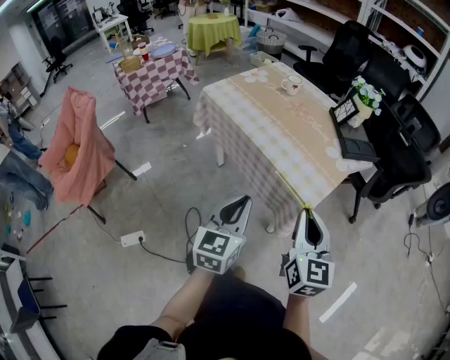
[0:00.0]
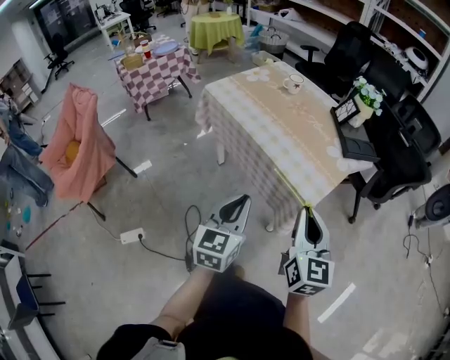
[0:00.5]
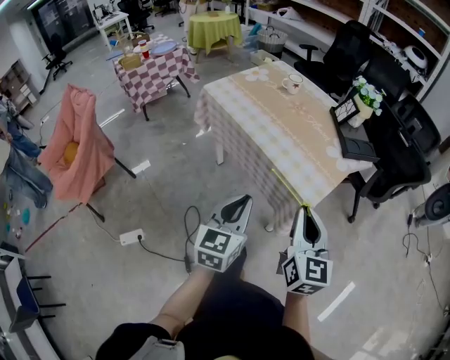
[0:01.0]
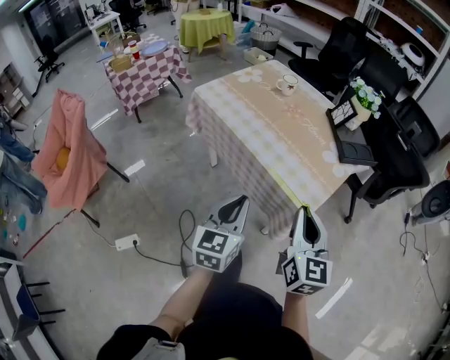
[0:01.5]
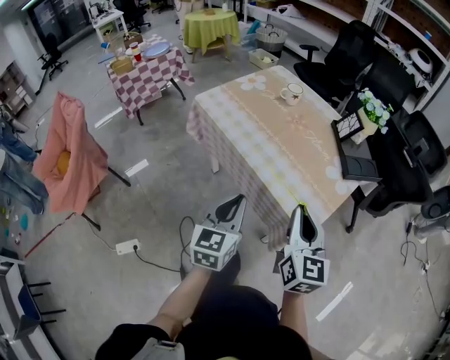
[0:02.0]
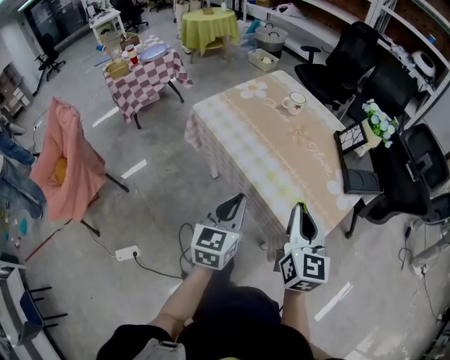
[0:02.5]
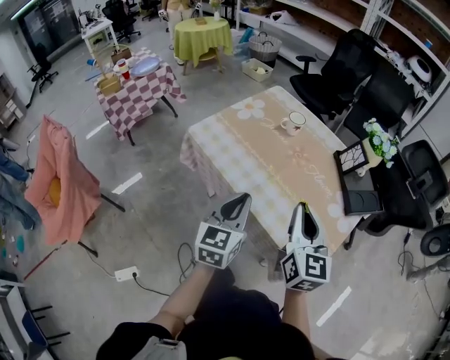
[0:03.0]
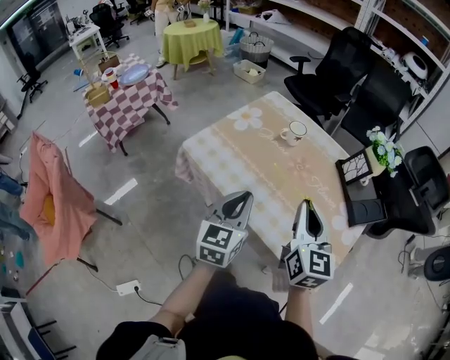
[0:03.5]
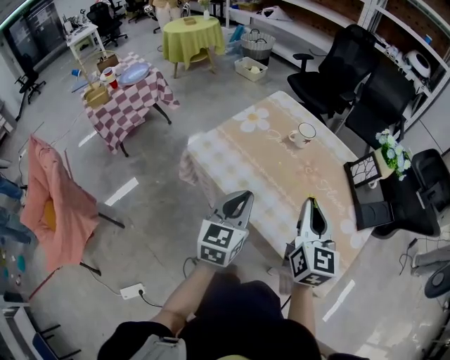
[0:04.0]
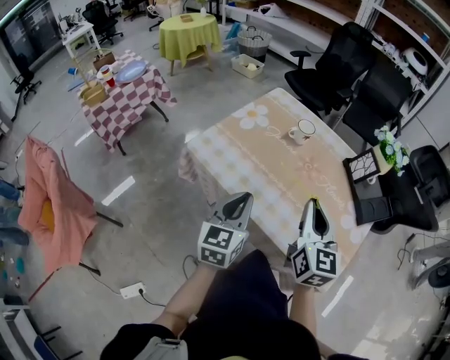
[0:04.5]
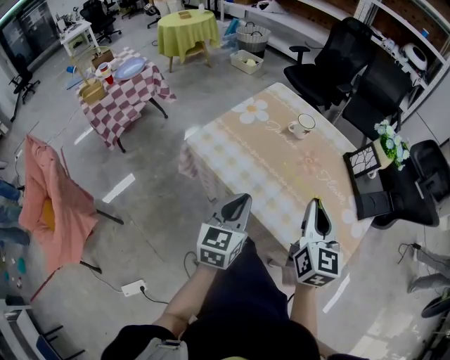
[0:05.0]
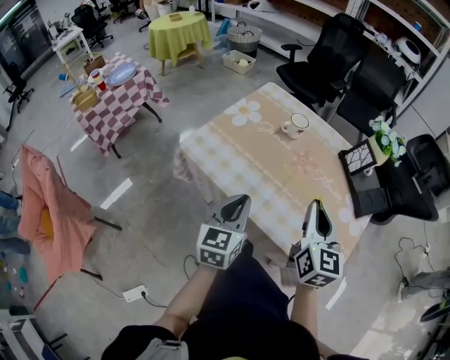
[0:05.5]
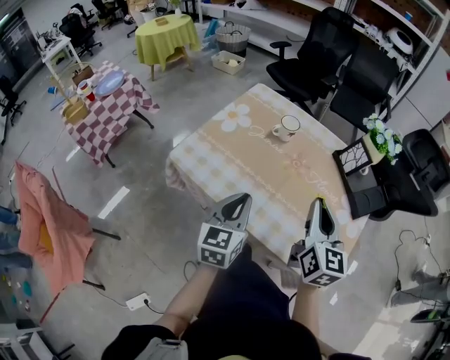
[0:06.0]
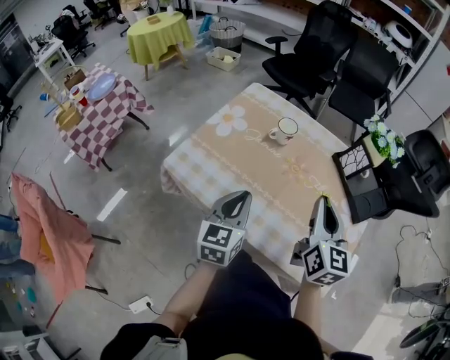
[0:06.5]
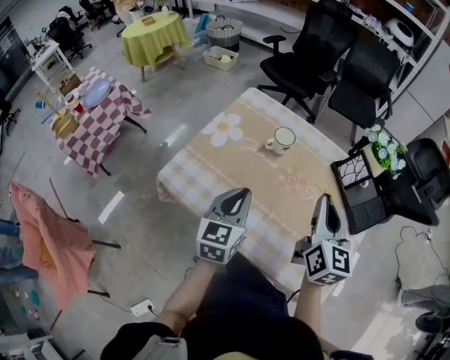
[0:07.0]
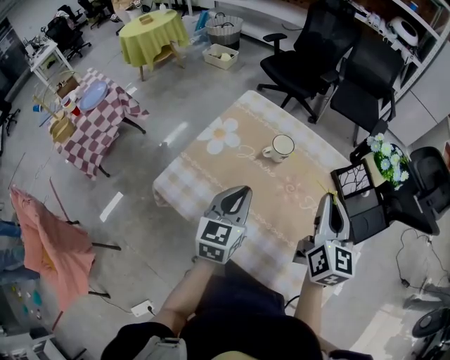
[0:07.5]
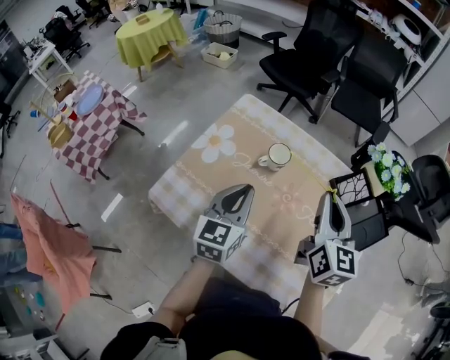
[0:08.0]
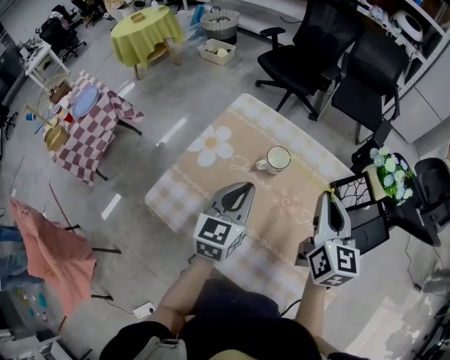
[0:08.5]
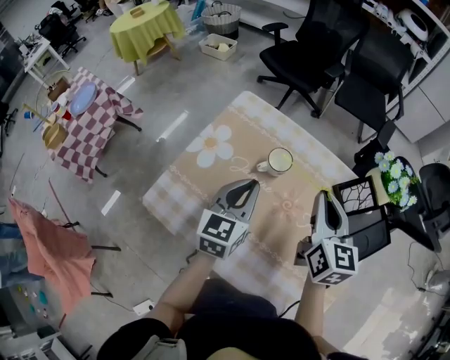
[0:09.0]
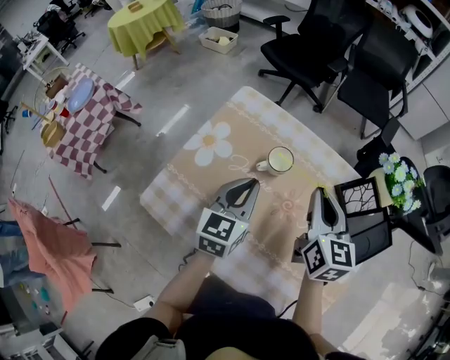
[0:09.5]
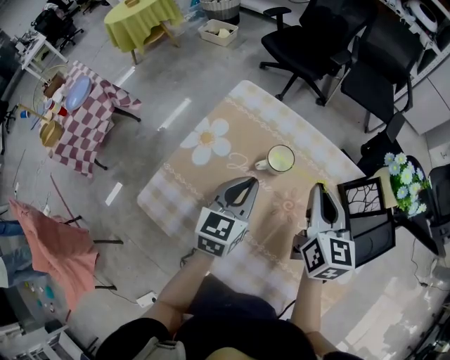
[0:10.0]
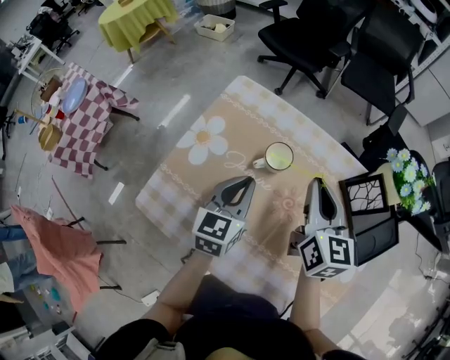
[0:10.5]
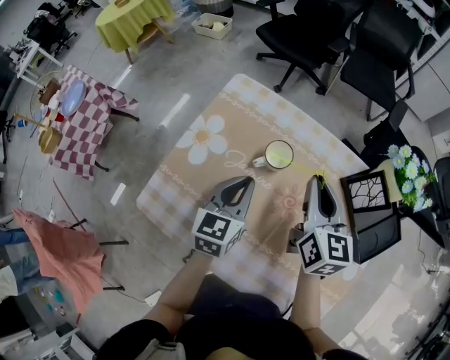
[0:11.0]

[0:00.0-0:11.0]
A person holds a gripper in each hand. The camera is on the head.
0:00.0 to 0:02.0: The grippers both shift forward by approximately 10 cm.
0:02.0 to 0:03.5: Both grippers move forward, approximately 25 cm.
0:03.5 to 0:05.5: The grippers make only small movements.
0:05.5 to 0:07.5: The two grippers go approximately 20 cm forward.
0:07.5 to 0:09.0: Both grippers move forward, roughly 10 cm.
0:09.0 to 0:11.0: The right gripper changes place by roughly 5 cm; the left gripper shifts approximately 5 cm downward.

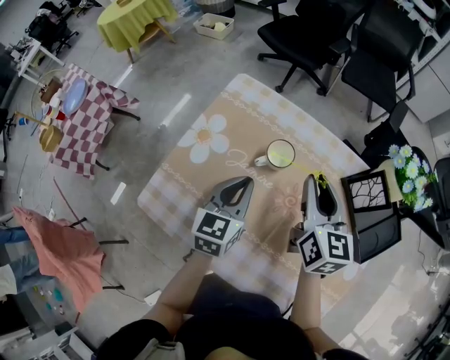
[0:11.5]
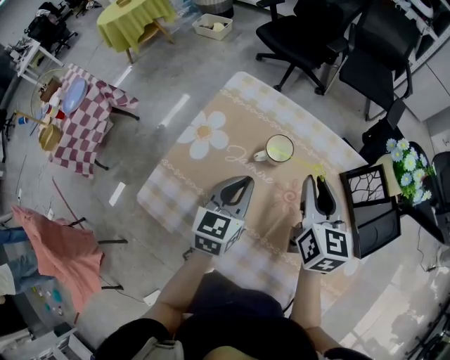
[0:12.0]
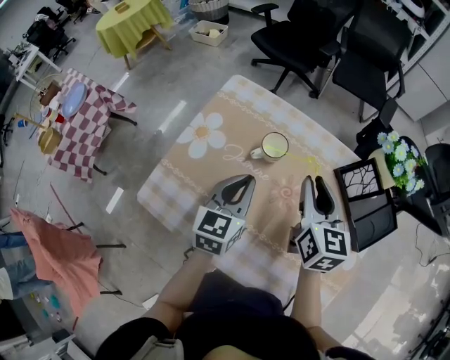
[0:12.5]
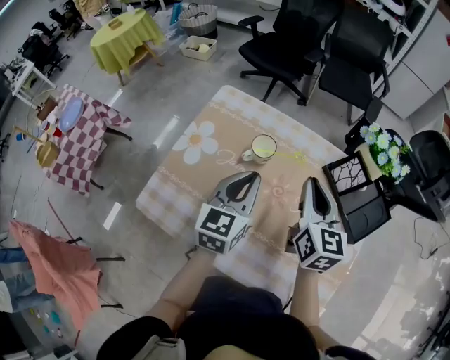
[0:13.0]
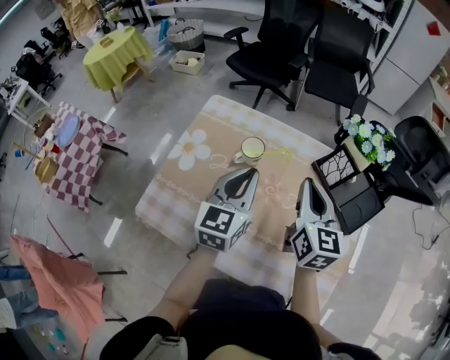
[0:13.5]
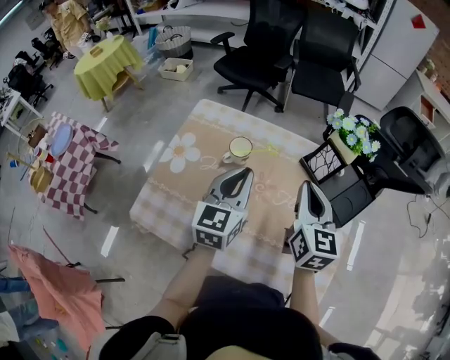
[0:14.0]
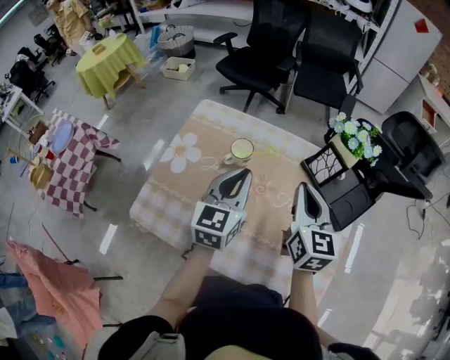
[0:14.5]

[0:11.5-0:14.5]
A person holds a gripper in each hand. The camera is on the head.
0:11.5 to 0:13.0: The right gripper moves backward, approximately 5 cm; the left gripper moves upward, some 5 cm.
0:13.0 to 0:14.5: The right gripper changes place by about 5 cm.

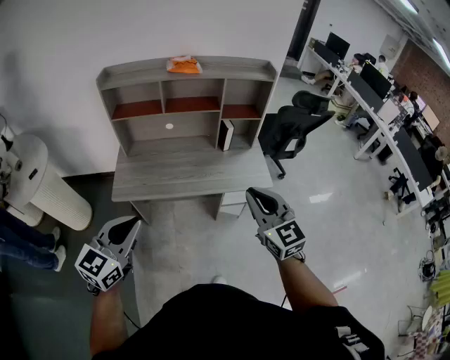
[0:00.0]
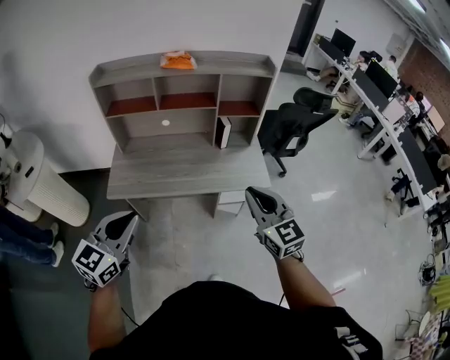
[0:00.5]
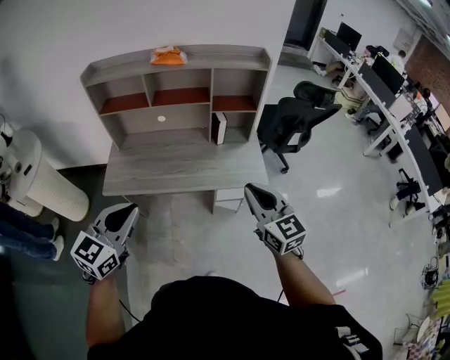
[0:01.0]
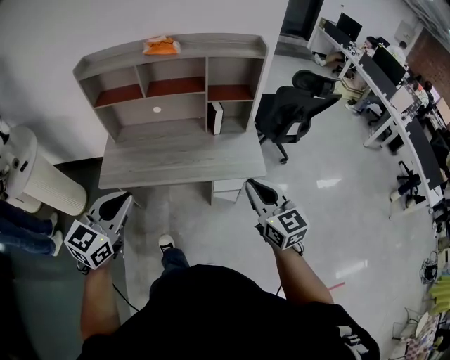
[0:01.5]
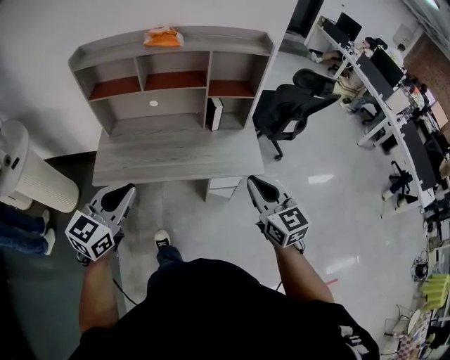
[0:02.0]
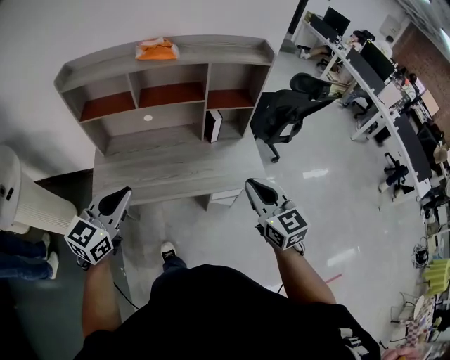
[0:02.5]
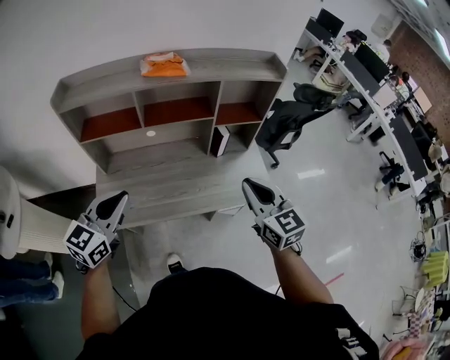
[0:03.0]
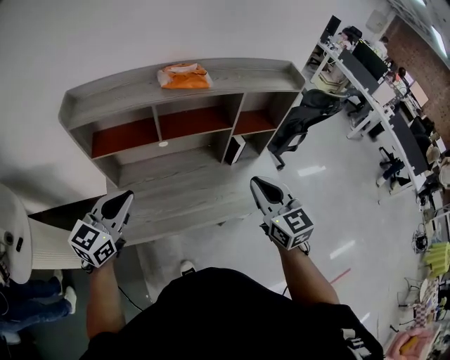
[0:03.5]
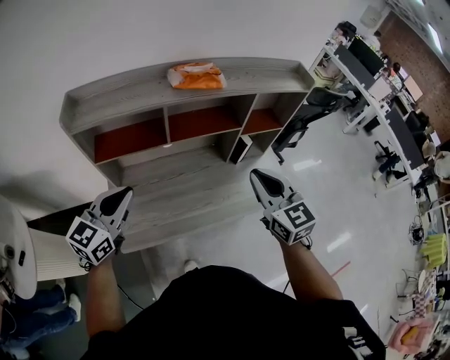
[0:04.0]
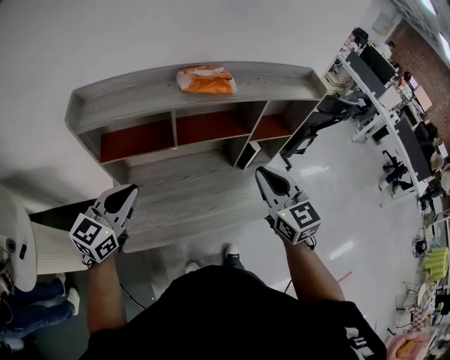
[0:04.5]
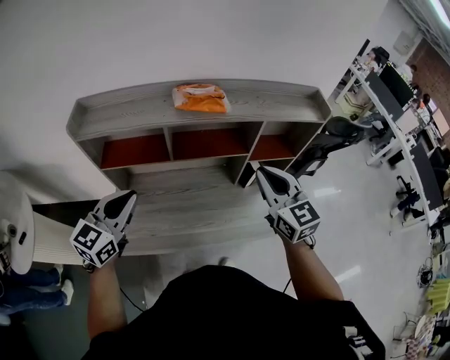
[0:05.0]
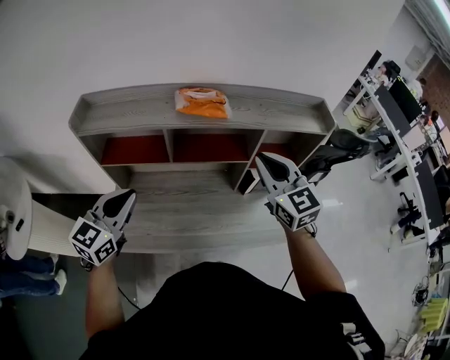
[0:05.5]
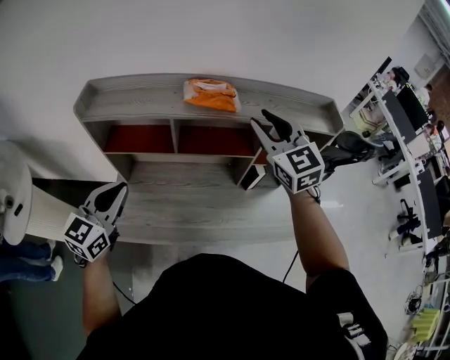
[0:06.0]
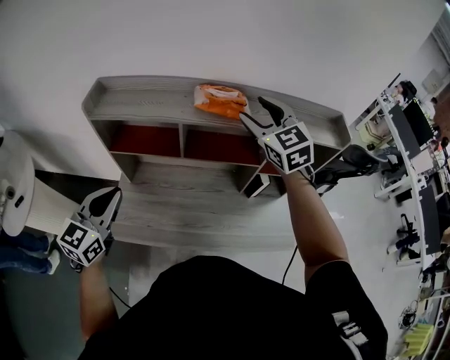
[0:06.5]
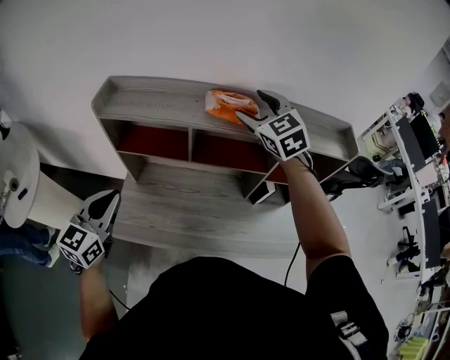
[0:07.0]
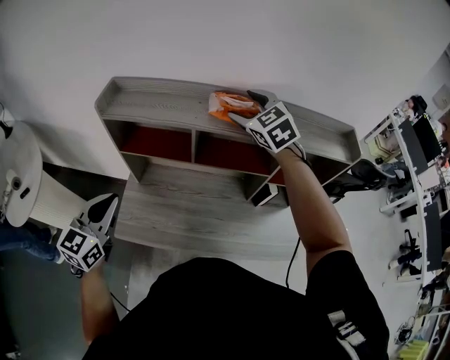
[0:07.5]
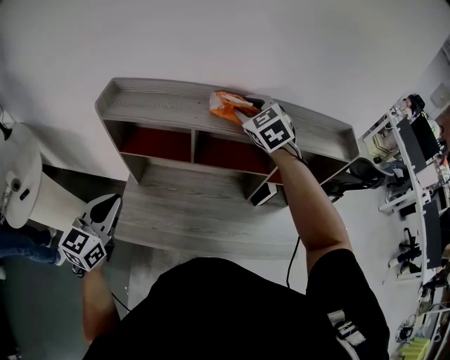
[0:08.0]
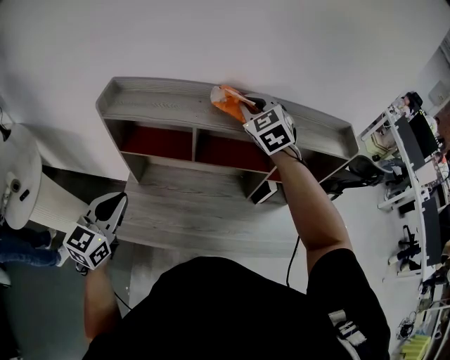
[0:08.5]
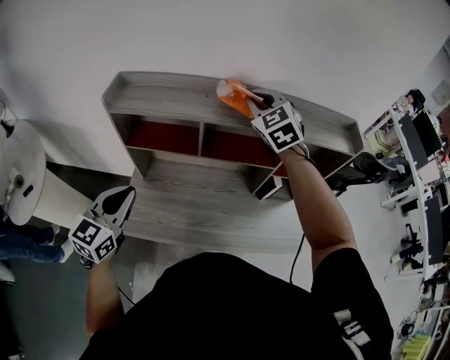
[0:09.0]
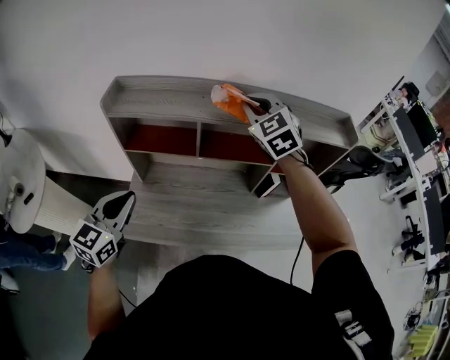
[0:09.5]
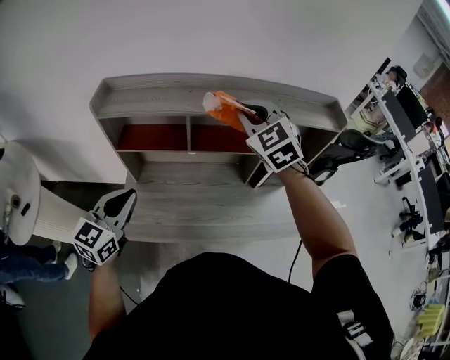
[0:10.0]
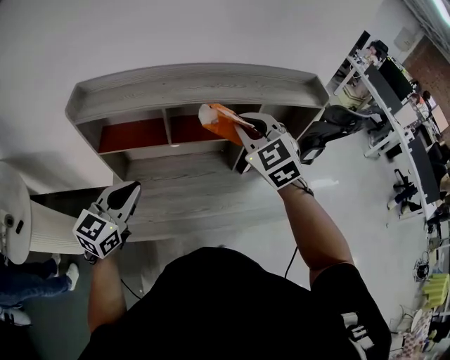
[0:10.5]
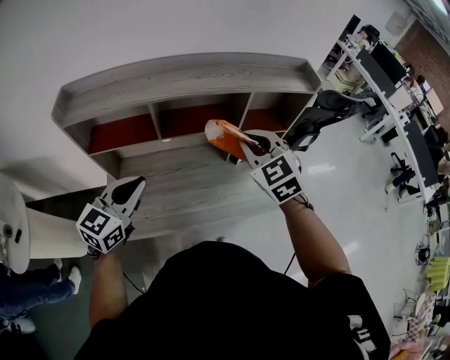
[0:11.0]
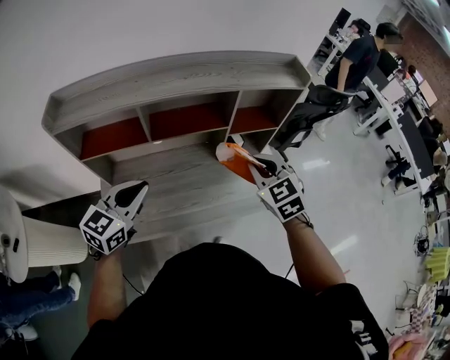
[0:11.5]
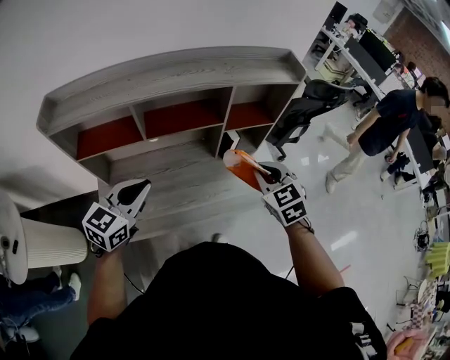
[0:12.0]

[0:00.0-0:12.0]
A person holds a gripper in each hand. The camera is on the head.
0:00.0 to 0:02.0: The right gripper heads to the right, forward and downward, covering about 15 cm. The left gripper goes about 15 cm forward and to the right.
0:02.0 to 0:04.0: Both grippers travel together to the left and forward, about 35 cm.
0:04.0 to 0:06.0: The right gripper travels forward and upward by approximately 20 cm, turns by about 20 degrees, and opens.
0:06.0 to 0:08.0: The right gripper shifts about 15 cm forward and to the left, rotates some 20 degrees, and opens and closes again; the left gripper moves to the left, some 5 cm.
0:08.0 to 0:10.0: The right gripper travels backward by some 10 cm, and closes up.
0:10.0 to 0:12.0: The right gripper travels to the right, downward and backward by roughly 30 cm, and swivels some 30 degrees. The left gripper heads to the right, covering some 15 cm, and swivels approximately 20 degrees.

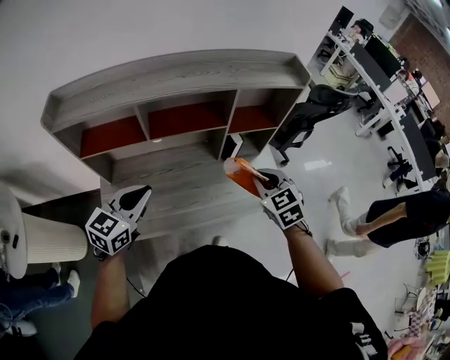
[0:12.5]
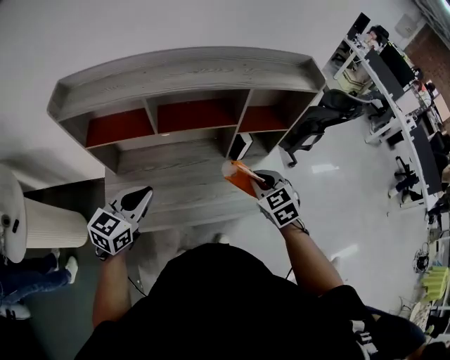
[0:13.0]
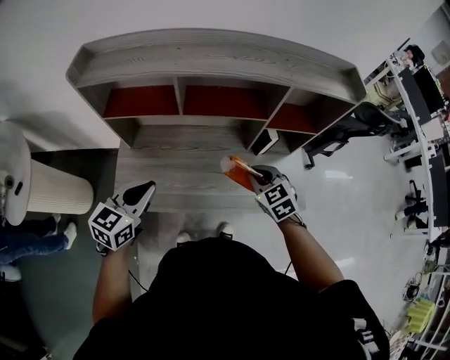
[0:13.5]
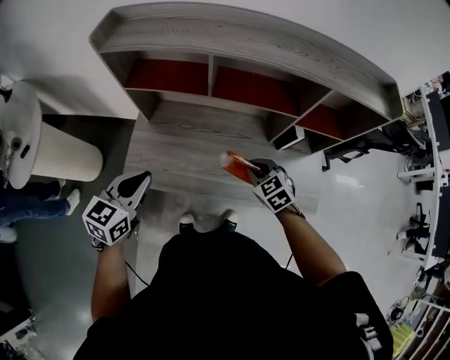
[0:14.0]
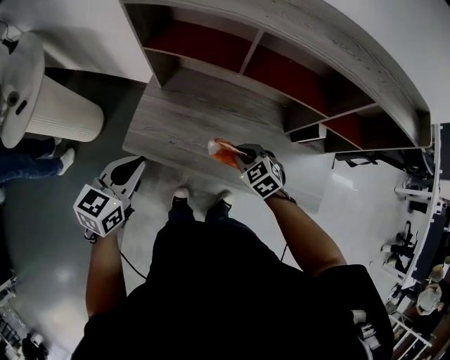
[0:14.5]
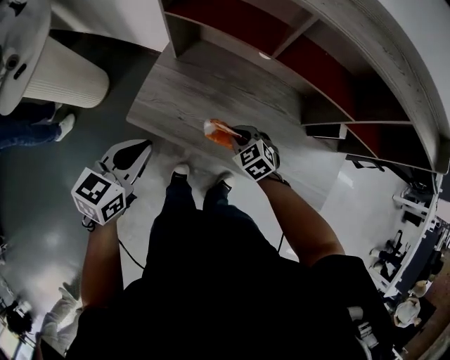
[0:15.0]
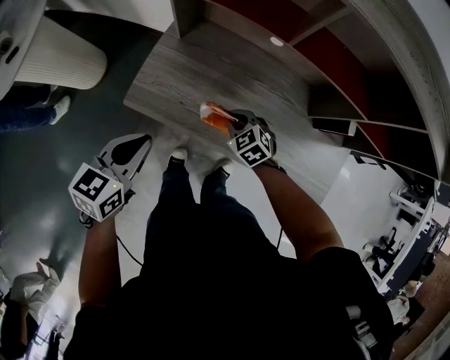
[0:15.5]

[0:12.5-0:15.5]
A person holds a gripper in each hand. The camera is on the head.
0:12.5 to 0:14.0: The right gripper goes about 15 cm downward, and changes its angle by approximately 30 degrees, while the left gripper ends up some 15 cm from where it was, and turns by some 30 degrees.
0:14.0 to 0:15.5: The right gripper travels to the left and downward by roughly 25 cm, and changes its angle by about 20 degrees; the left gripper travels downward and to the left by about 15 cm.
